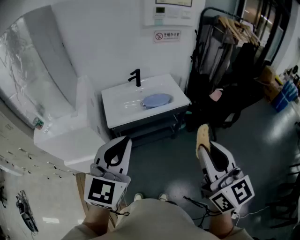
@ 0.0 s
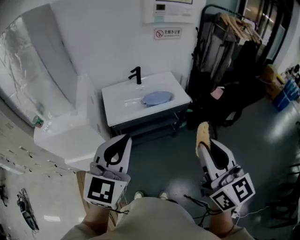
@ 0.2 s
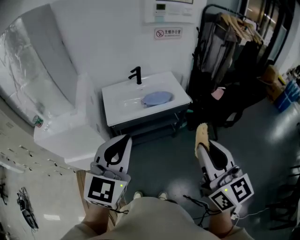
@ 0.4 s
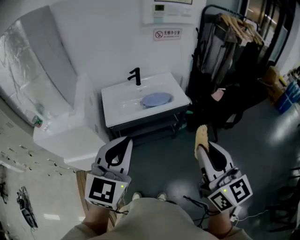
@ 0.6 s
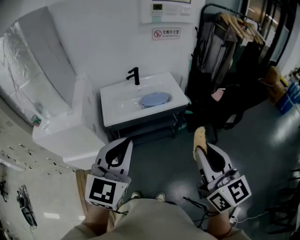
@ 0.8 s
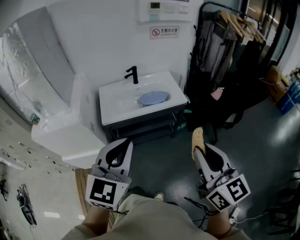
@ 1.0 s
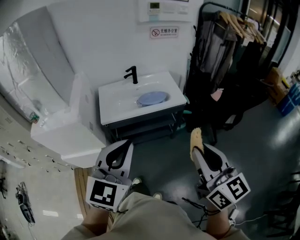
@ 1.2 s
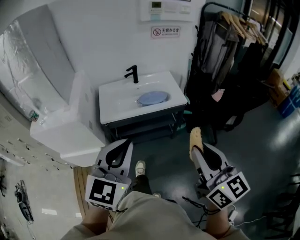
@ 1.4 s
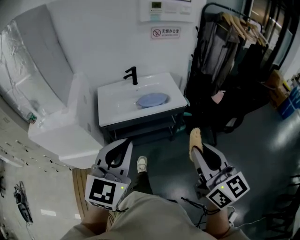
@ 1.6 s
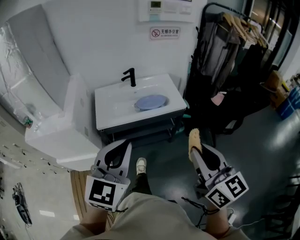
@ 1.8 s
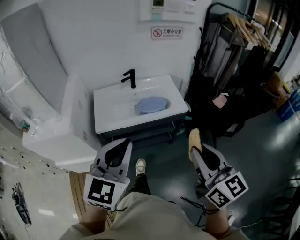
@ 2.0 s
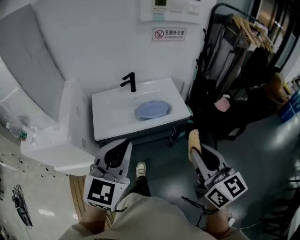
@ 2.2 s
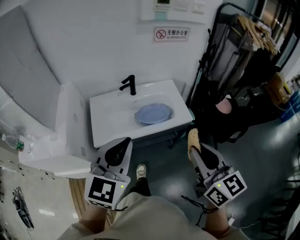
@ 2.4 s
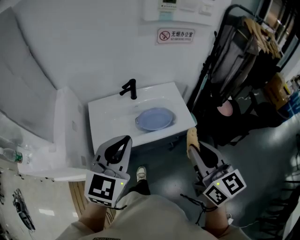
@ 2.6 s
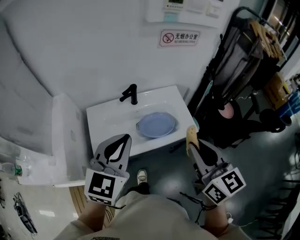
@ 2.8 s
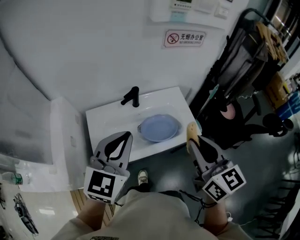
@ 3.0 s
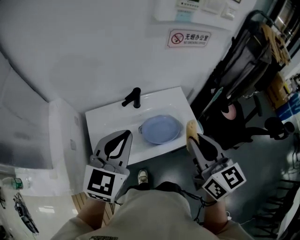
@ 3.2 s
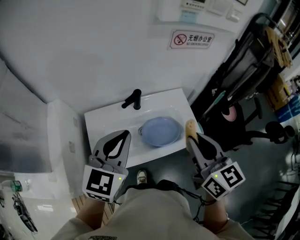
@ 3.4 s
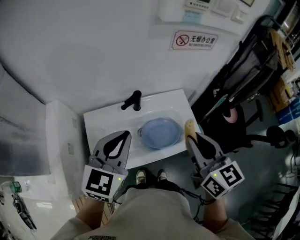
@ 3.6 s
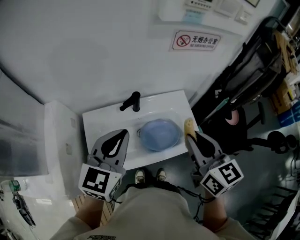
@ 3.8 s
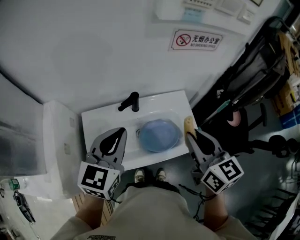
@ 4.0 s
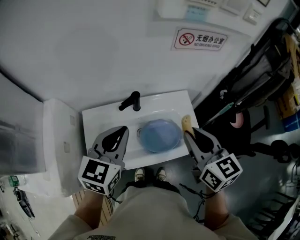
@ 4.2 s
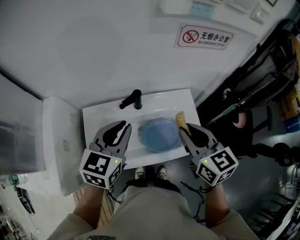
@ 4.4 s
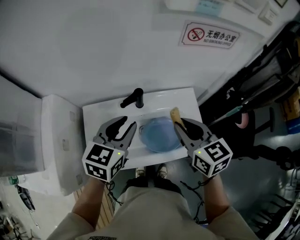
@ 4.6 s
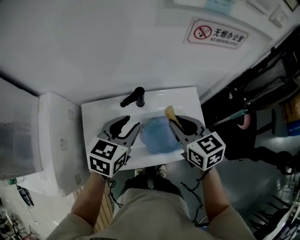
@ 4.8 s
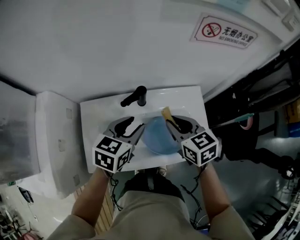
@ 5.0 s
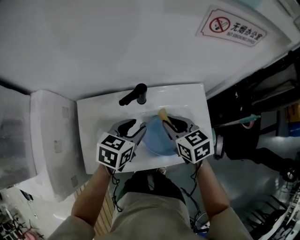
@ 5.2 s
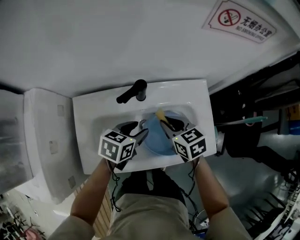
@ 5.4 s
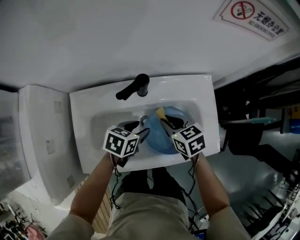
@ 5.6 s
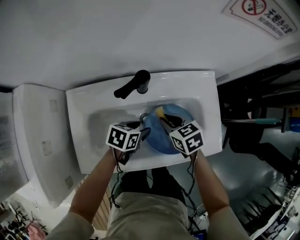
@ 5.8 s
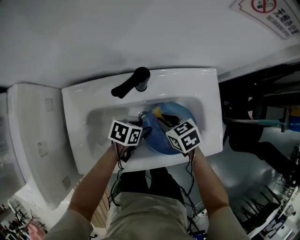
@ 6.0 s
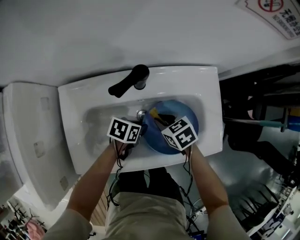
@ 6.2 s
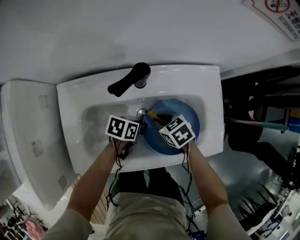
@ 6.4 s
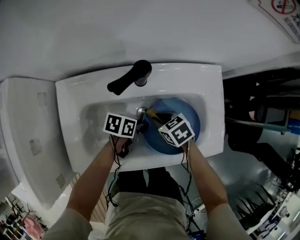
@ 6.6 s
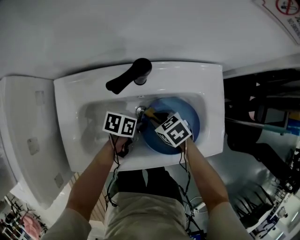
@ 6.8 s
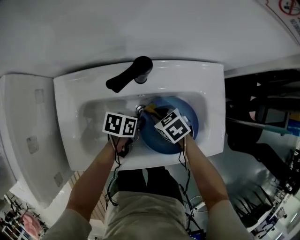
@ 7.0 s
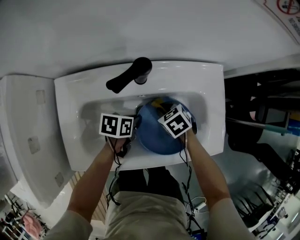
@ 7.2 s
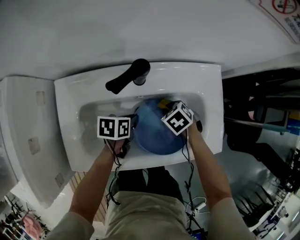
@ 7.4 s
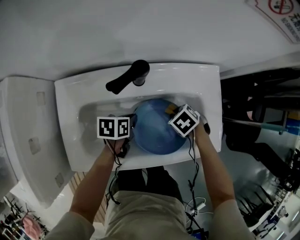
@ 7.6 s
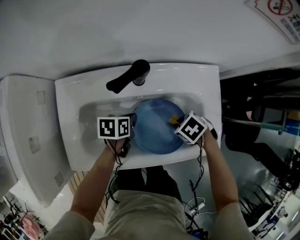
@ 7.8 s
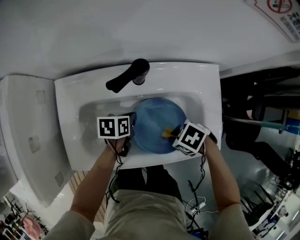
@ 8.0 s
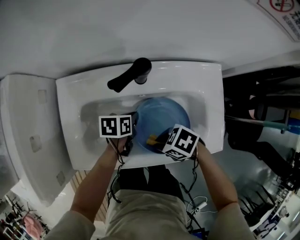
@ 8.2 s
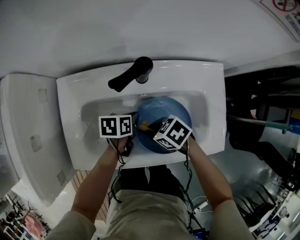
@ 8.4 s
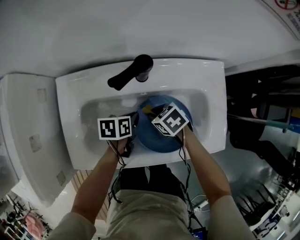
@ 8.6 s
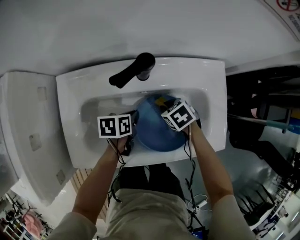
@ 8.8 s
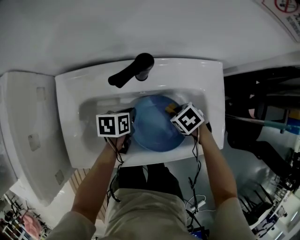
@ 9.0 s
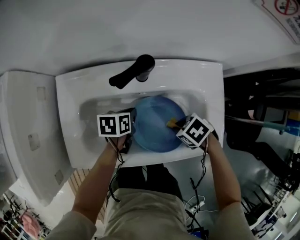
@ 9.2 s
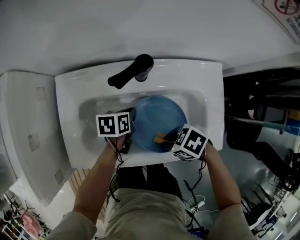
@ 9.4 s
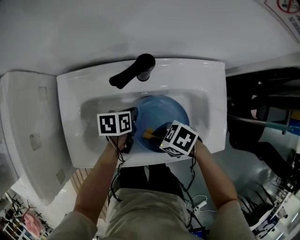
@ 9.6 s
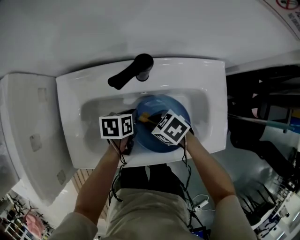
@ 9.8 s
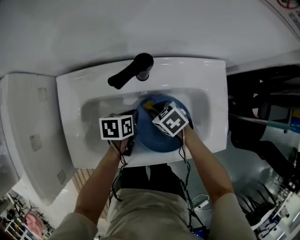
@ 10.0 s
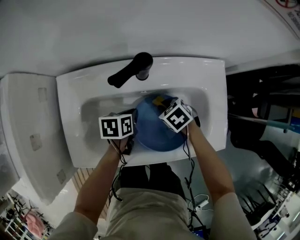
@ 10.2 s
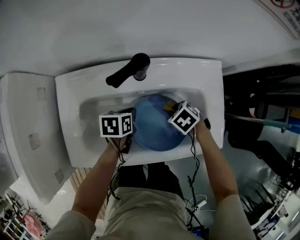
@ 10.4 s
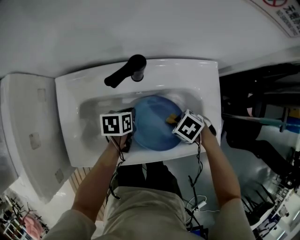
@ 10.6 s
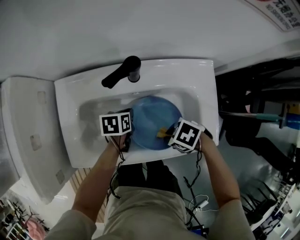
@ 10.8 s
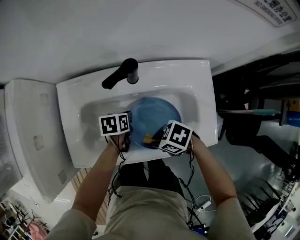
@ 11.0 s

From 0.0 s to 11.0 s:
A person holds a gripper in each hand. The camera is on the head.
From 0.0 s to 1.6 s: The right gripper goes approximately 10 cm to the right and downward. The left gripper travels to the right by about 10 cm.
From 1.6 s to 3.2 s: The pair of grippers is taken forward, about 40 cm.
From 3.2 s to 4.8 s: Both grippers travel together forward and downward, some 25 cm. The left gripper rotates about 20 degrees, and opens up, while the right gripper turns by approximately 30 degrees.
From 4.8 s to 6.2 s: Both grippers travel together downward, some 35 cm. The right gripper turns by about 30 degrees. The left gripper changes its angle by approximately 50 degrees.
From 6.2 s to 7.8 s: The left gripper turns by some 20 degrees; the right gripper shifts by some 10 cm, and swivels about 30 degrees.
From 7.8 s to 9.4 s: The right gripper moves up and down over roughly 10 cm, changing direction 2 times, and changes its angle by about 20 degrees.
From 9.4 s to 11.0 s: The right gripper moves some 10 cm downward and comes back.

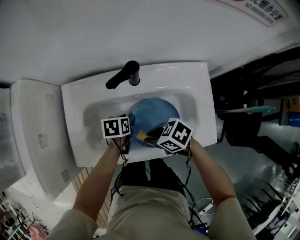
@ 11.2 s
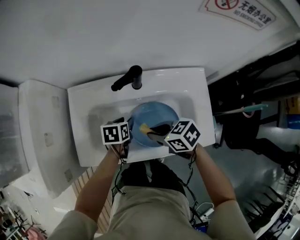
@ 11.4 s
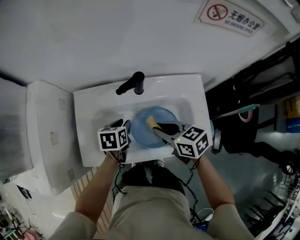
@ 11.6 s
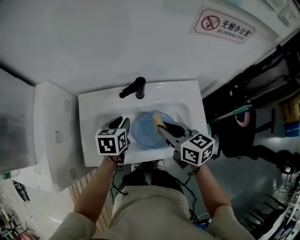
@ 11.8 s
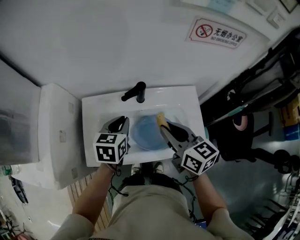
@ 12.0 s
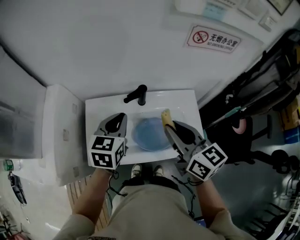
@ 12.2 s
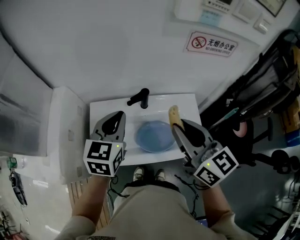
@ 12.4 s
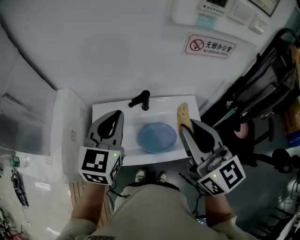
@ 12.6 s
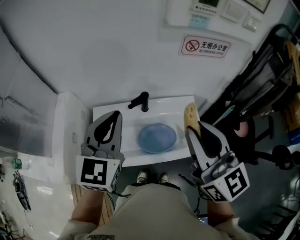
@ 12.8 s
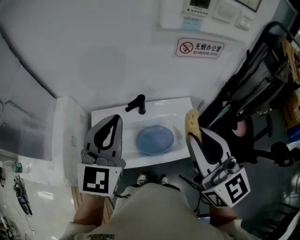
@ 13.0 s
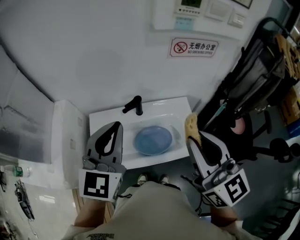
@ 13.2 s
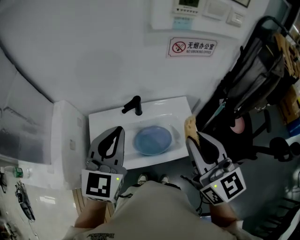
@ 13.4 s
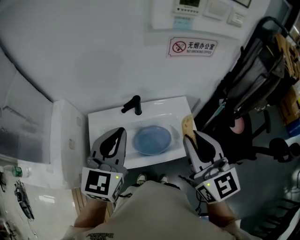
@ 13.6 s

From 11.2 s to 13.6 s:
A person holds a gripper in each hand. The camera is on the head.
From 11.2 s to 12.4 s: Both grippers travel together upward, approximately 40 cm. The right gripper angles its fingers upward, by some 40 degrees; the left gripper angles its fingers upward, by about 40 degrees, and closes up.
From 12.4 s to 13.6 s: The left gripper goes about 10 cm upward and backward, while the right gripper heads backward and to the right, covering roughly 10 cm, and rotates roughly 20 degrees.

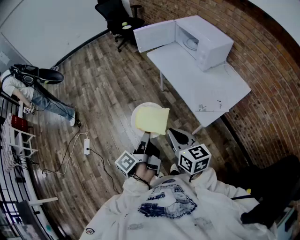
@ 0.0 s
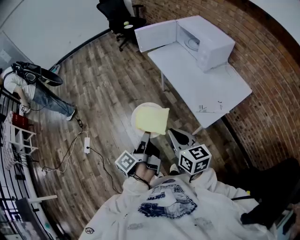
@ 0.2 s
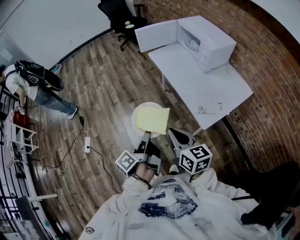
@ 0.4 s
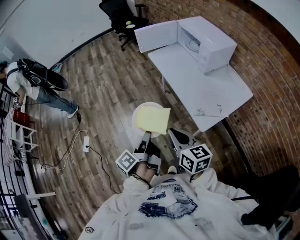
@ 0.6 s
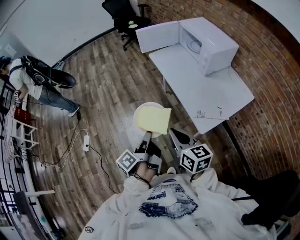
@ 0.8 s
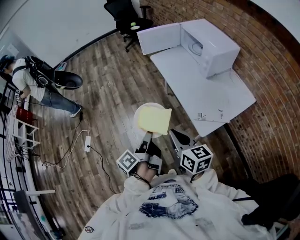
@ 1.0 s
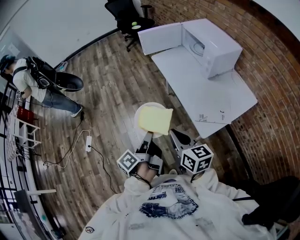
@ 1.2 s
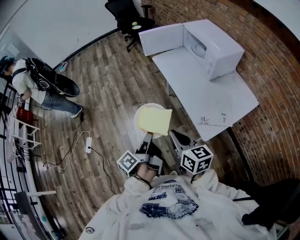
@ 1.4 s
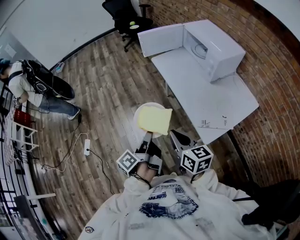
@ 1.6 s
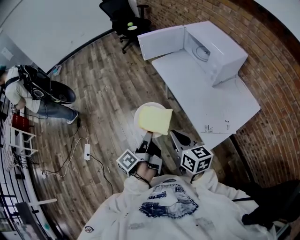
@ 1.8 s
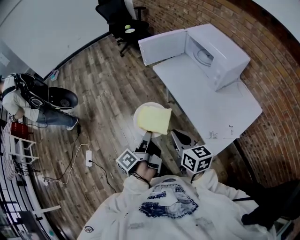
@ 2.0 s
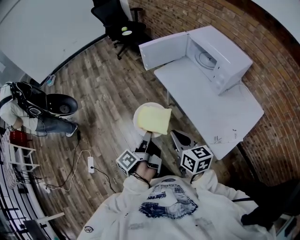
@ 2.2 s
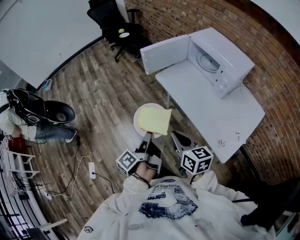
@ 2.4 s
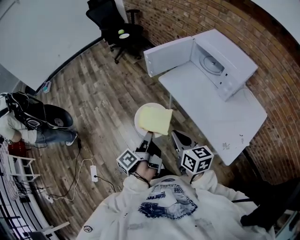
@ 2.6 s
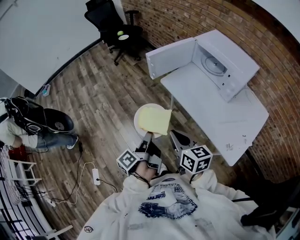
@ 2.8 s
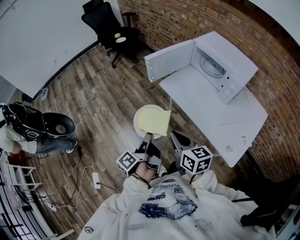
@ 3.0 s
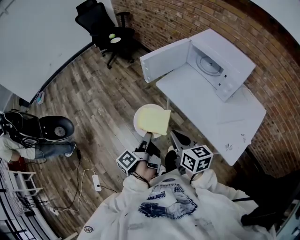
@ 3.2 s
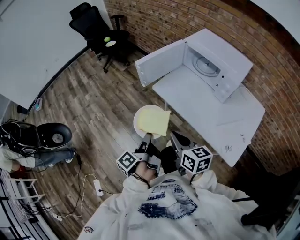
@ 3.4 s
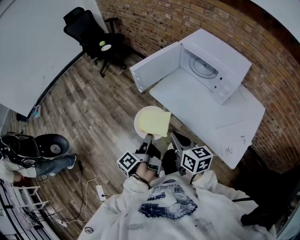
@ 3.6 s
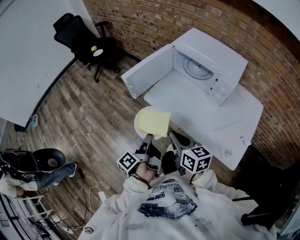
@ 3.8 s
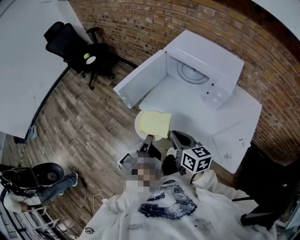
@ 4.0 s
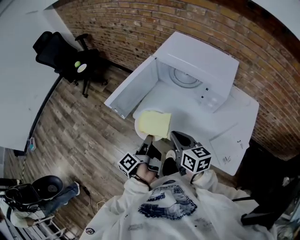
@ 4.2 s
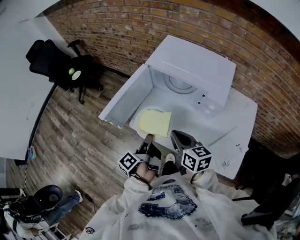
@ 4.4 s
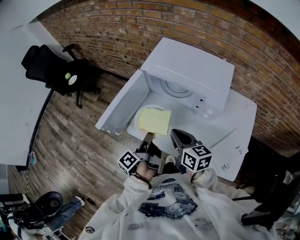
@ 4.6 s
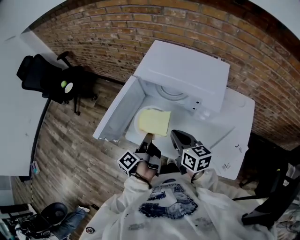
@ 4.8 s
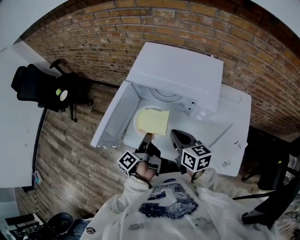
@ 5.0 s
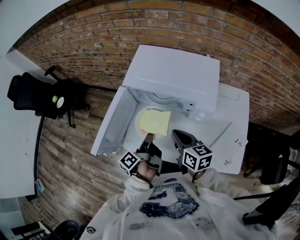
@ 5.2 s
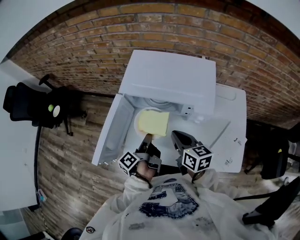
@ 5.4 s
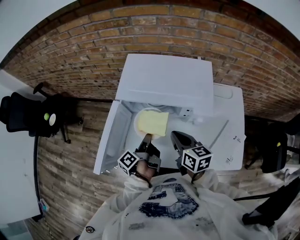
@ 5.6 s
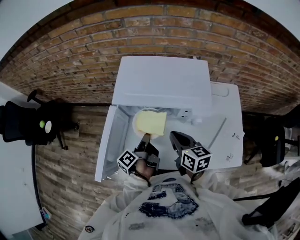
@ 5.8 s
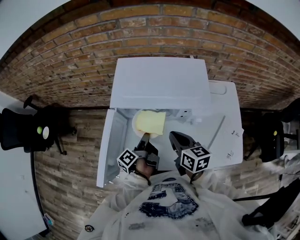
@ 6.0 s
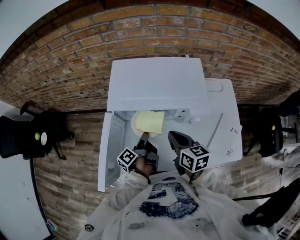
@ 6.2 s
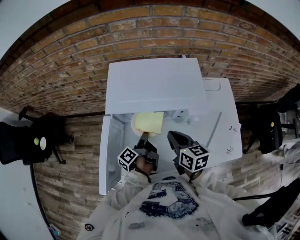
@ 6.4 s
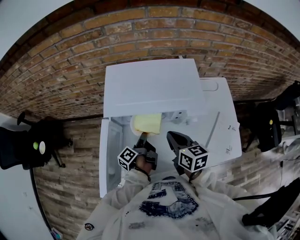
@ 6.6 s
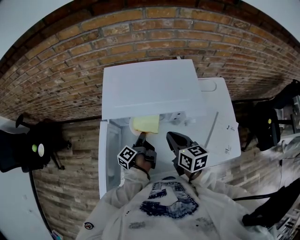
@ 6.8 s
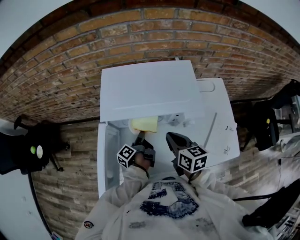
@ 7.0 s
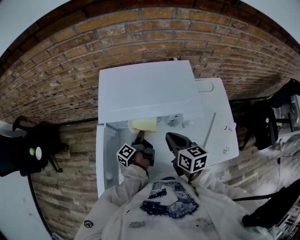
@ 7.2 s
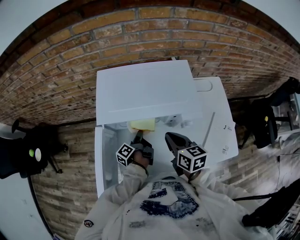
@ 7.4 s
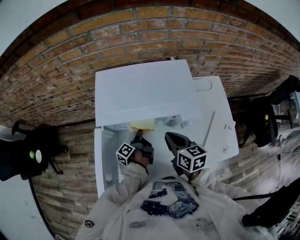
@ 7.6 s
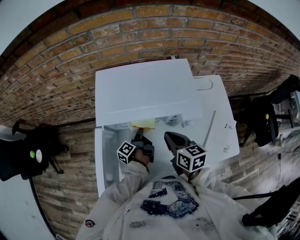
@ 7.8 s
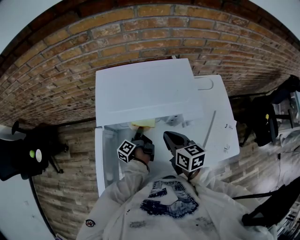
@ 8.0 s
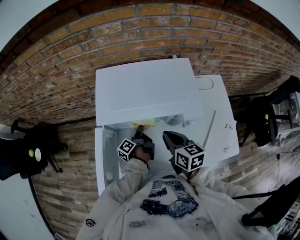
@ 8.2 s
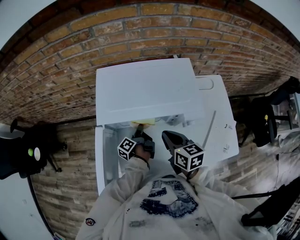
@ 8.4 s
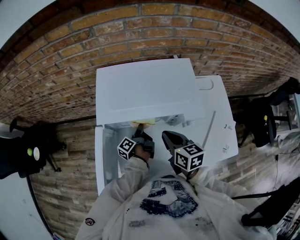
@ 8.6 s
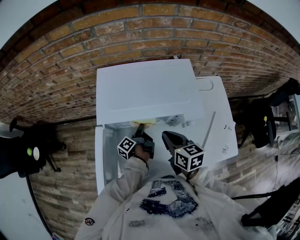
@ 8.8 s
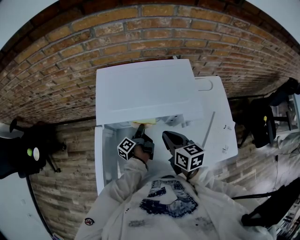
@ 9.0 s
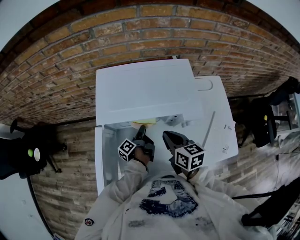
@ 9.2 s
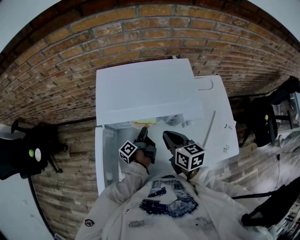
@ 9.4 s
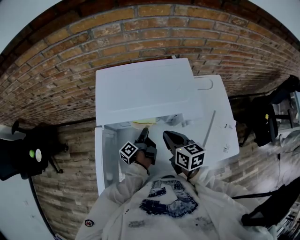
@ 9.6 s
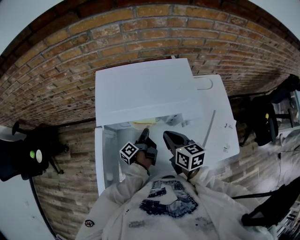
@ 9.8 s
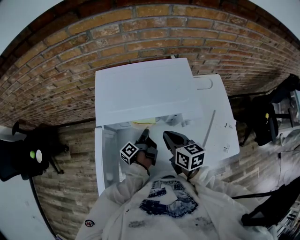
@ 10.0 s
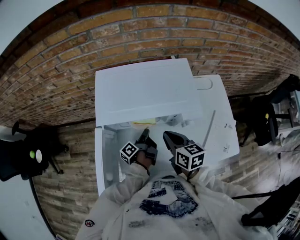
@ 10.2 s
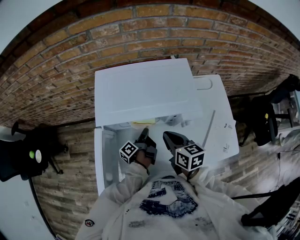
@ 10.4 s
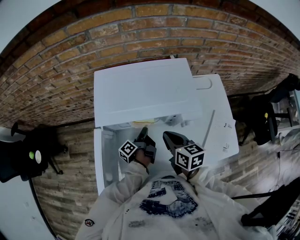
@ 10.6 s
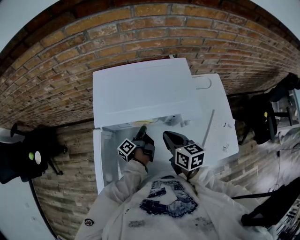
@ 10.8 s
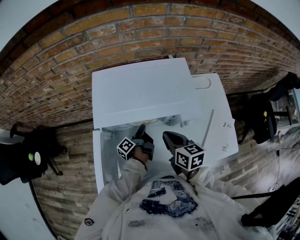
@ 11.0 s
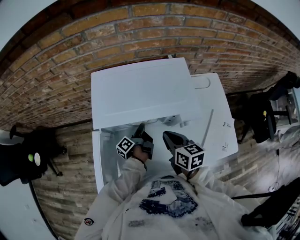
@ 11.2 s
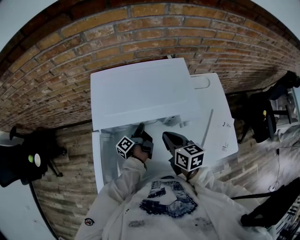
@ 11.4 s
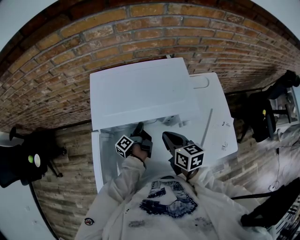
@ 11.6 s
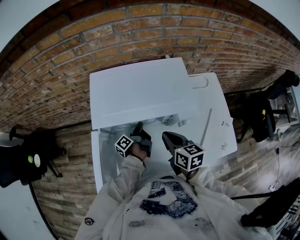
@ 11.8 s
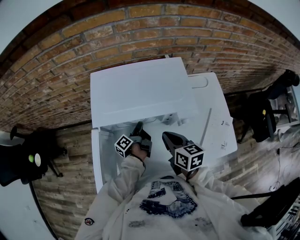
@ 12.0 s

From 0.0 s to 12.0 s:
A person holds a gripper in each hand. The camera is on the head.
From 0.0 s to 1.6 s: The right gripper changes place by approximately 10 cm.
From 1.6 s to 3.0 s: The right gripper shifts by some 30 cm.
From 3.0 s to 4.4 s: The right gripper ends up some 30 cm from where it was, and rotates about 20 degrees.
From 4.4 s to 6.0 s: The right gripper changes place by approximately 15 cm, and turns by approximately 30 degrees.
